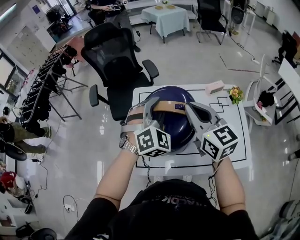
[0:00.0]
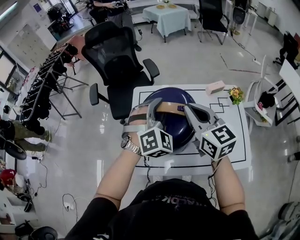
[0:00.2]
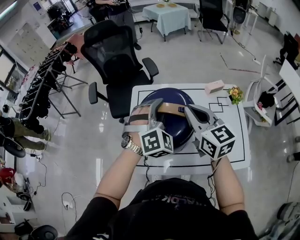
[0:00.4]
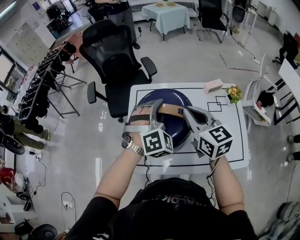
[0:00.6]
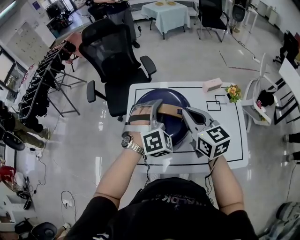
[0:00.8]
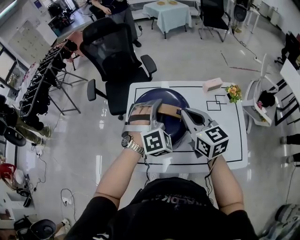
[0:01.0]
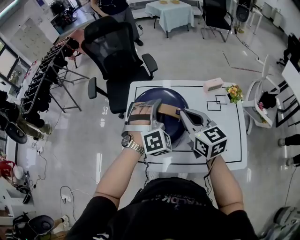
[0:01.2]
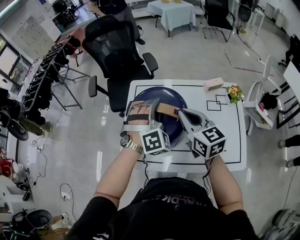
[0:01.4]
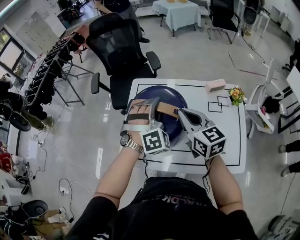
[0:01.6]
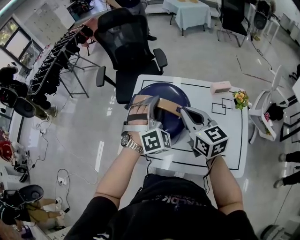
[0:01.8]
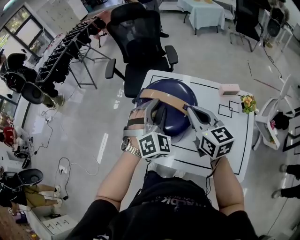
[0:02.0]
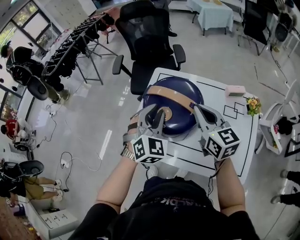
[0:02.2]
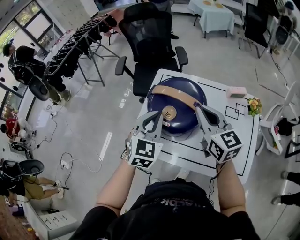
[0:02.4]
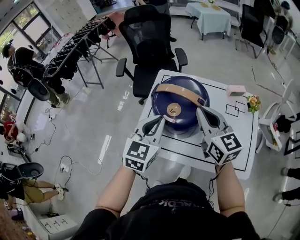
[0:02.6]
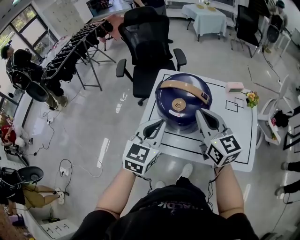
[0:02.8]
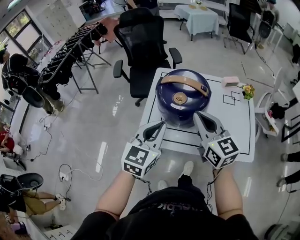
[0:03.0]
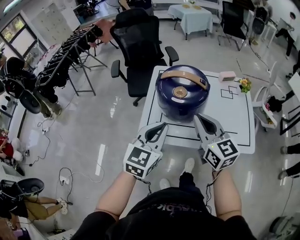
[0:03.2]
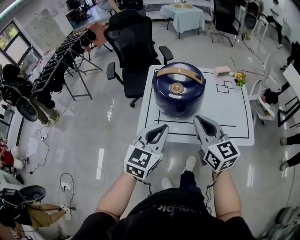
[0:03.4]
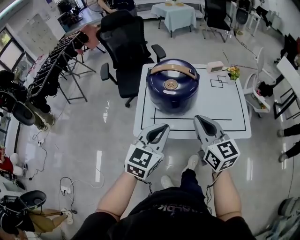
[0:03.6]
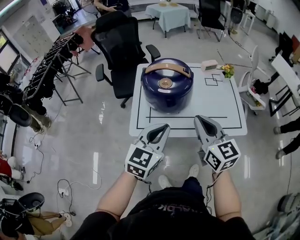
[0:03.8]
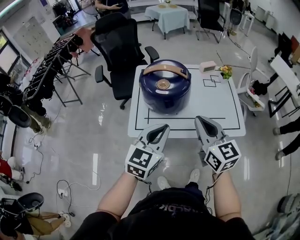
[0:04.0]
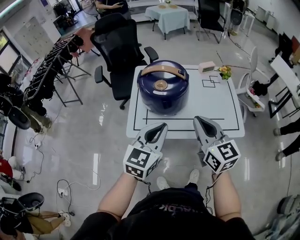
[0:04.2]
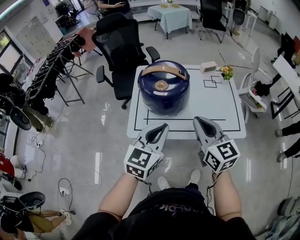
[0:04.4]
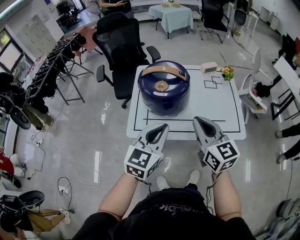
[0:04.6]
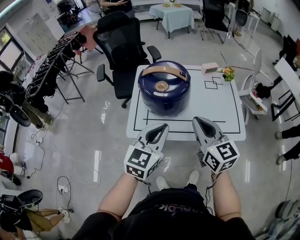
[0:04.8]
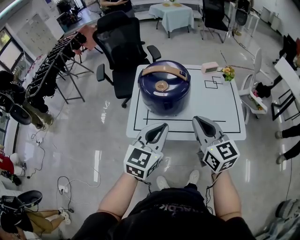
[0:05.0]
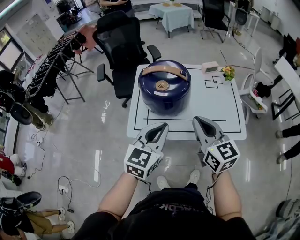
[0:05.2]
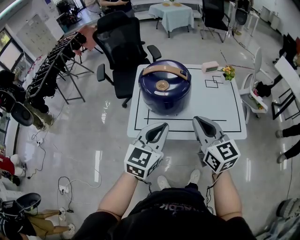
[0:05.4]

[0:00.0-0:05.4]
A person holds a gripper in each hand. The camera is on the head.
0:00.0 to 0:01.4: The grippers both shift downward by some 5 cm.
0:01.4 to 0:02.8: The left gripper shifts about 20 cm backward and to the left, twists about 70 degrees counterclockwise, seen from behind, and closes, while the right gripper moves backward and to the left, roughly 10 cm.
0:02.8 to 0:04.0: The two grippers go approximately 15 cm backward.
0:04.0 to 0:05.4: The grippers move only a little.

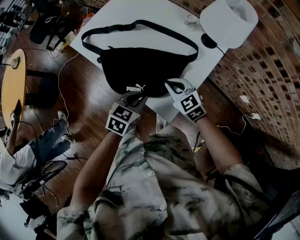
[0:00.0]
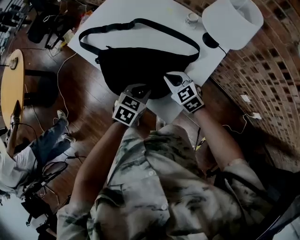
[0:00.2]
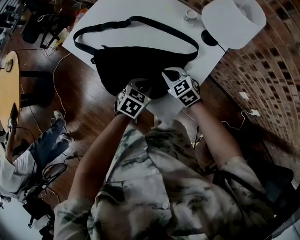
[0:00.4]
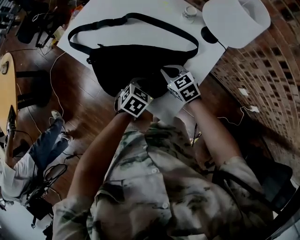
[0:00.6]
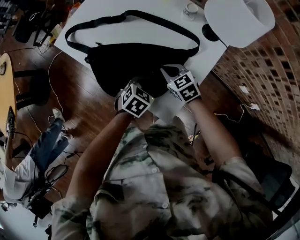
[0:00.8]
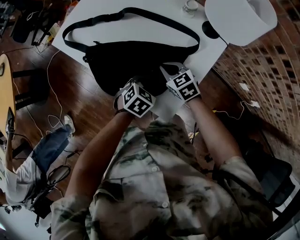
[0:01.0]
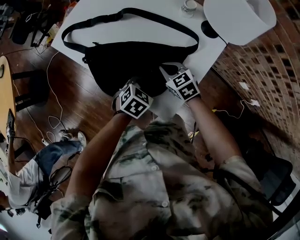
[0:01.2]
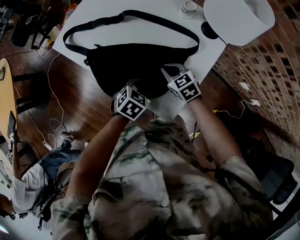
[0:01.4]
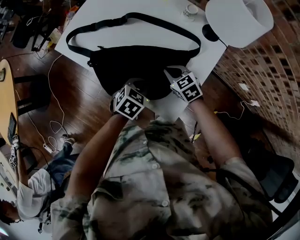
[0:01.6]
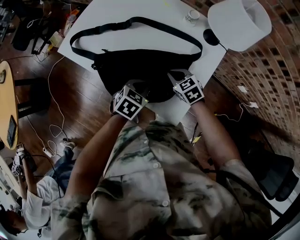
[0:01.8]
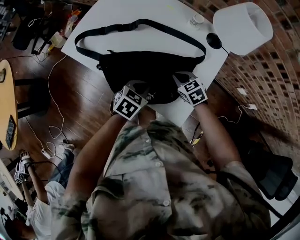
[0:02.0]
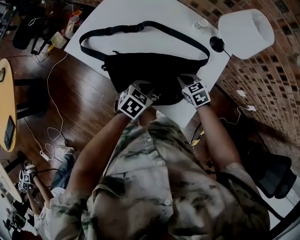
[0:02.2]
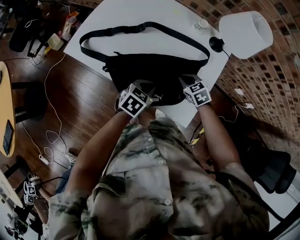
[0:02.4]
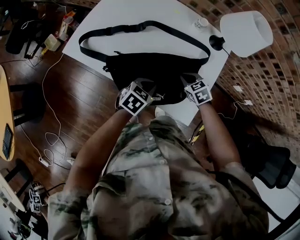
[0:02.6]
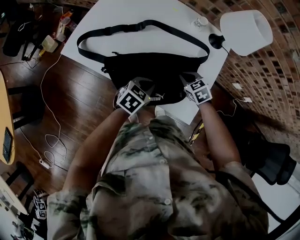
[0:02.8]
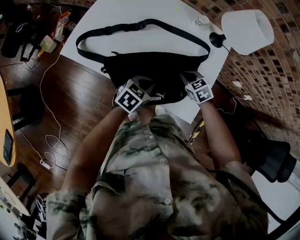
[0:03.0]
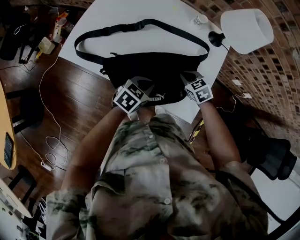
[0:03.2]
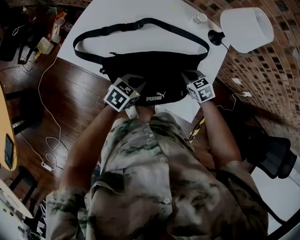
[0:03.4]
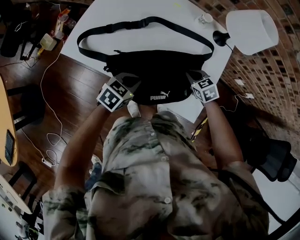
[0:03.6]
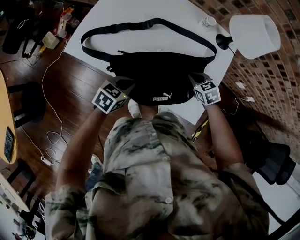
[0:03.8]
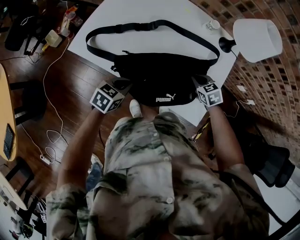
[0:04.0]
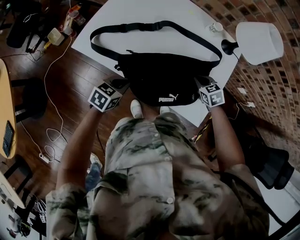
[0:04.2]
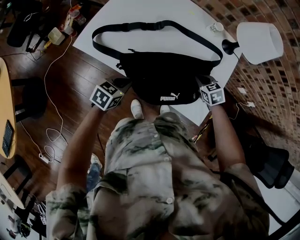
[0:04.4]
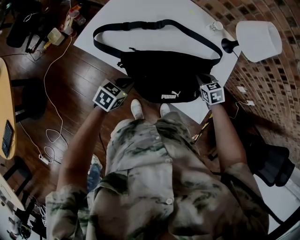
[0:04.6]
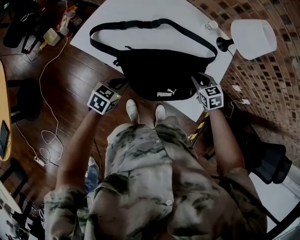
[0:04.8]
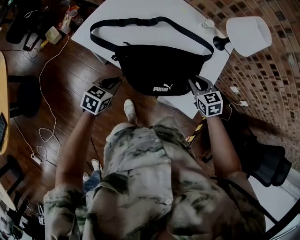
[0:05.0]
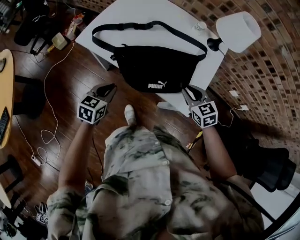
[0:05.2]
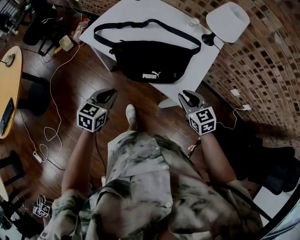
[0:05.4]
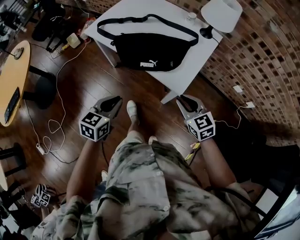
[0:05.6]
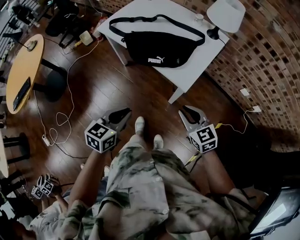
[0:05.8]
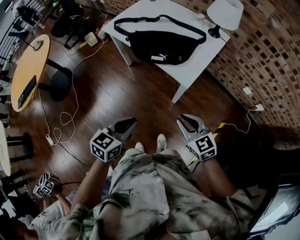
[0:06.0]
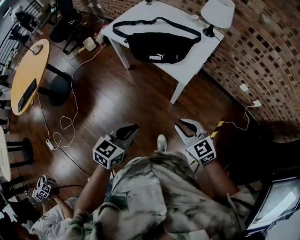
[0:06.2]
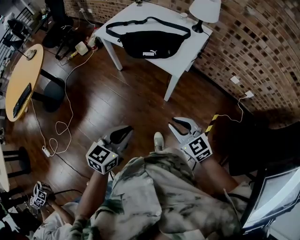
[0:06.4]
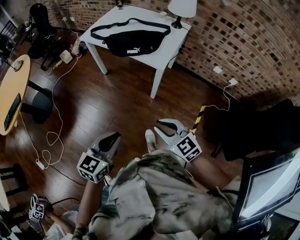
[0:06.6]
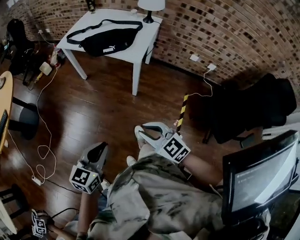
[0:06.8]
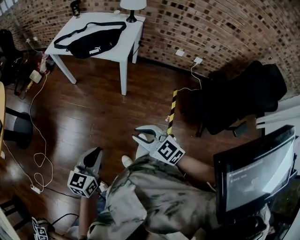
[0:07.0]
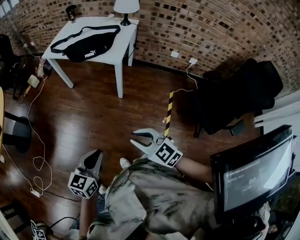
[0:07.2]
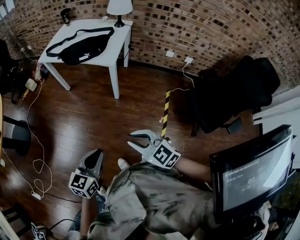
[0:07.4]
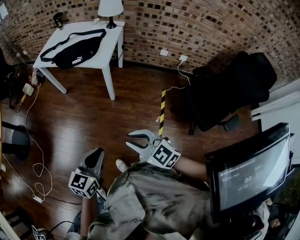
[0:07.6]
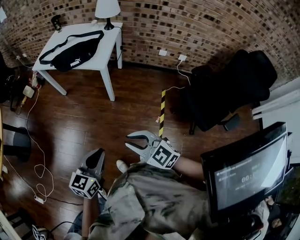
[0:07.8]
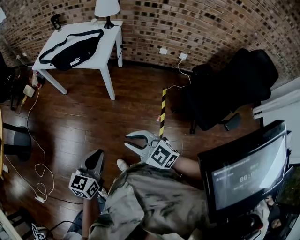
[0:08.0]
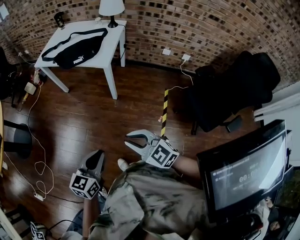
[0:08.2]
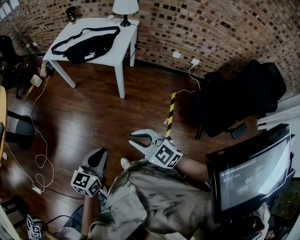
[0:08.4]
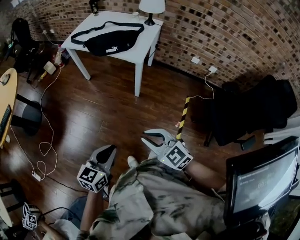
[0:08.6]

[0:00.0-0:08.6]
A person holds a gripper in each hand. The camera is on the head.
0:00.0 to 0:01.4: Both grippers move downward and forward, approximately 10 cm.
0:01.4 to 0:02.8: The left gripper goes some 10 cm to the left.
0:02.8 to 0:04.4: The left gripper is displaced to the left by some 15 cm.
0:04.4 to 0:05.8: The left gripper shifts roughly 40 cm backward, upward and to the right, and turns by some 30 degrees. Meanwhile the right gripper moves backward and upward, some 40 cm, and angles its fingers upward, by some 30 degrees.
0:05.8 to 0:07.2: The two grippers go about 35 cm backward.
0:07.2 to 0:08.6: The left gripper reaches about 10 cm to the right, then returns.

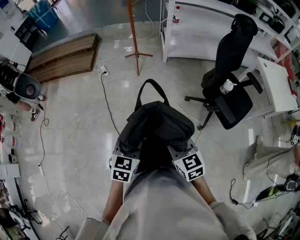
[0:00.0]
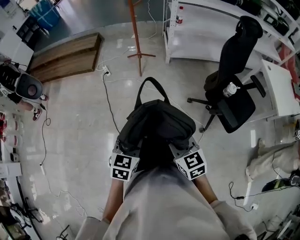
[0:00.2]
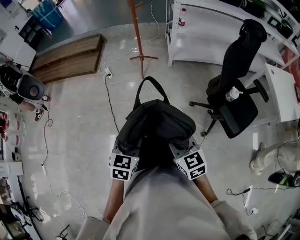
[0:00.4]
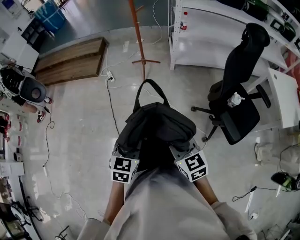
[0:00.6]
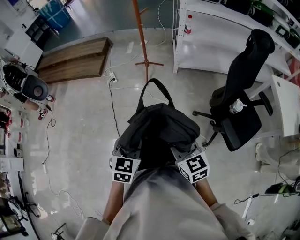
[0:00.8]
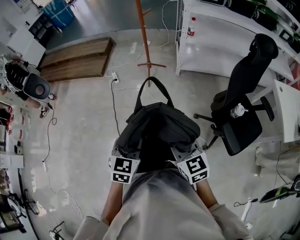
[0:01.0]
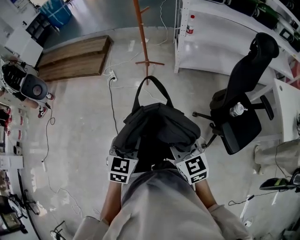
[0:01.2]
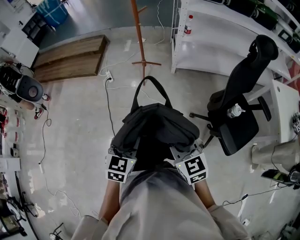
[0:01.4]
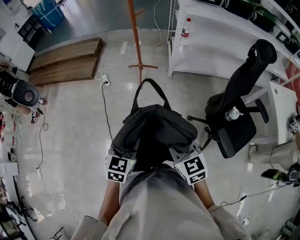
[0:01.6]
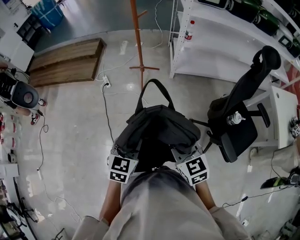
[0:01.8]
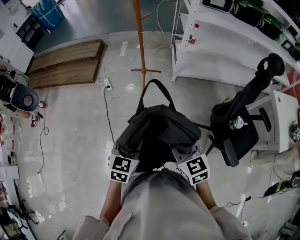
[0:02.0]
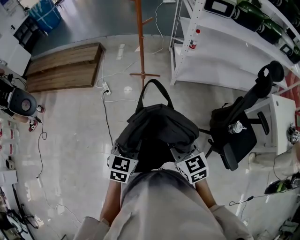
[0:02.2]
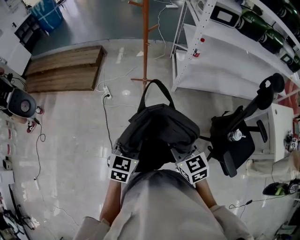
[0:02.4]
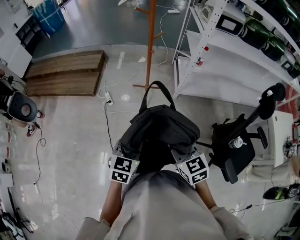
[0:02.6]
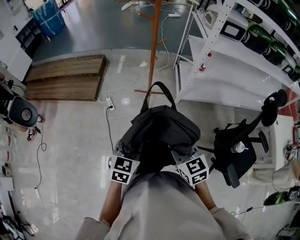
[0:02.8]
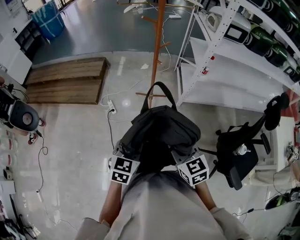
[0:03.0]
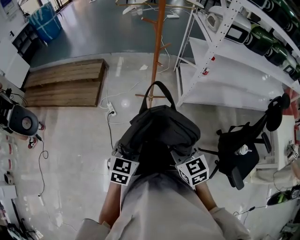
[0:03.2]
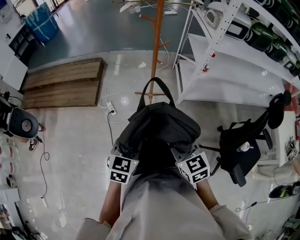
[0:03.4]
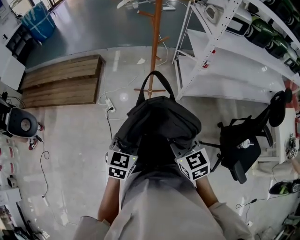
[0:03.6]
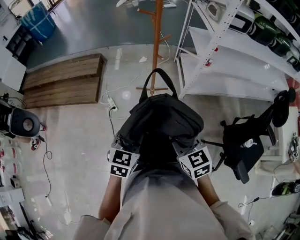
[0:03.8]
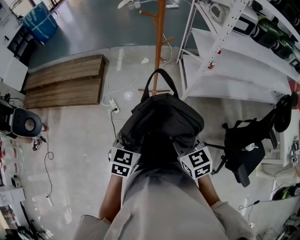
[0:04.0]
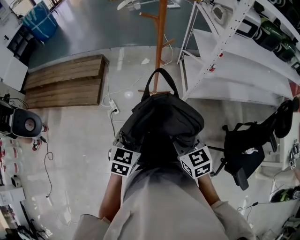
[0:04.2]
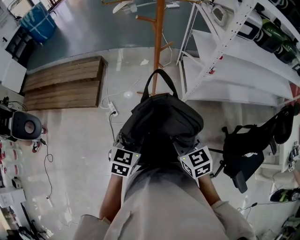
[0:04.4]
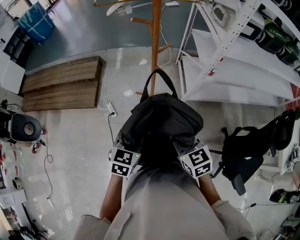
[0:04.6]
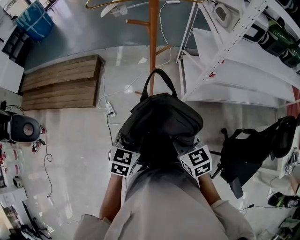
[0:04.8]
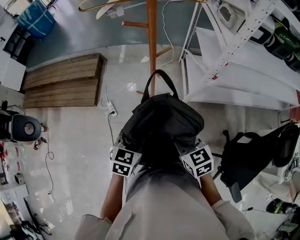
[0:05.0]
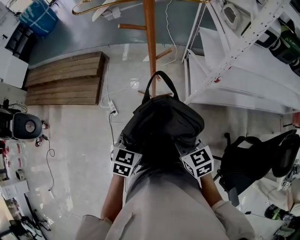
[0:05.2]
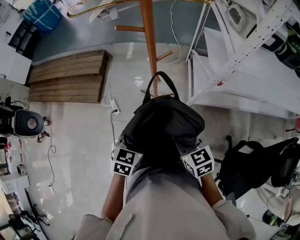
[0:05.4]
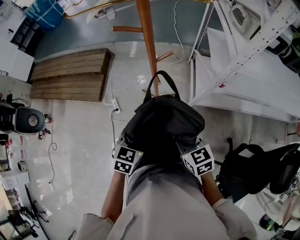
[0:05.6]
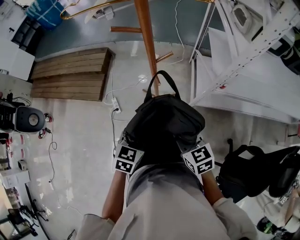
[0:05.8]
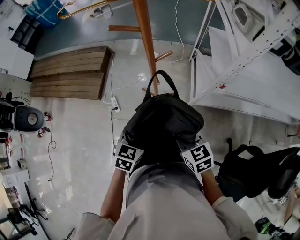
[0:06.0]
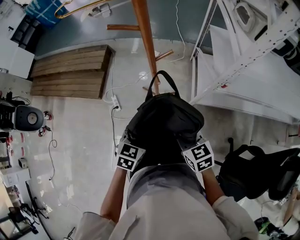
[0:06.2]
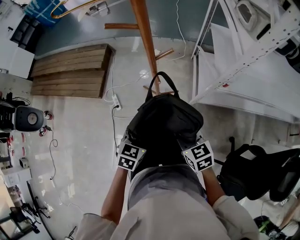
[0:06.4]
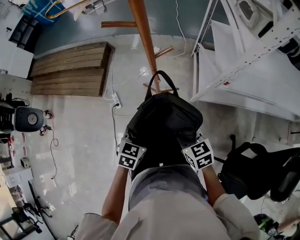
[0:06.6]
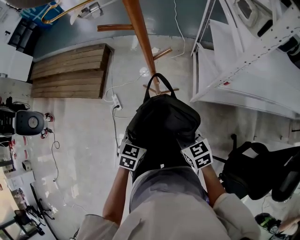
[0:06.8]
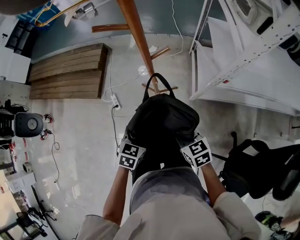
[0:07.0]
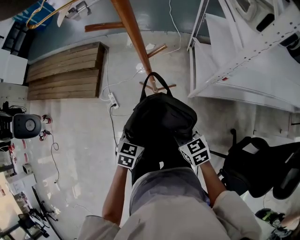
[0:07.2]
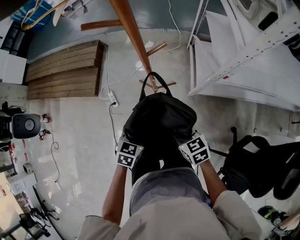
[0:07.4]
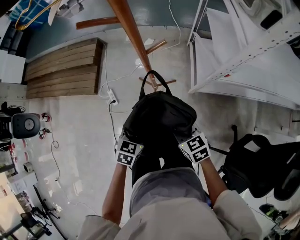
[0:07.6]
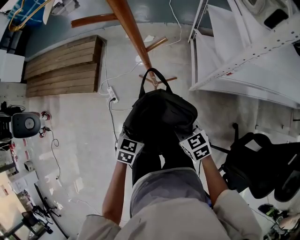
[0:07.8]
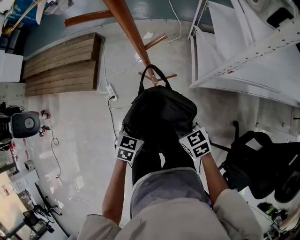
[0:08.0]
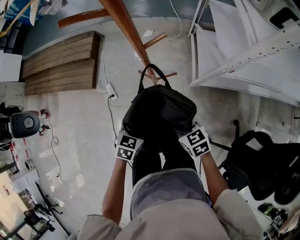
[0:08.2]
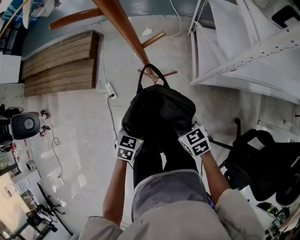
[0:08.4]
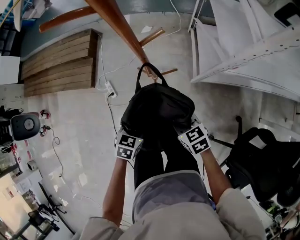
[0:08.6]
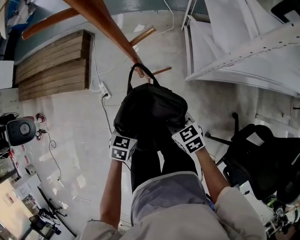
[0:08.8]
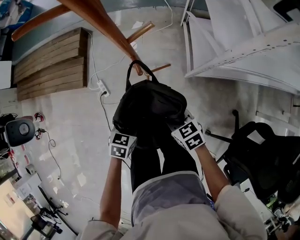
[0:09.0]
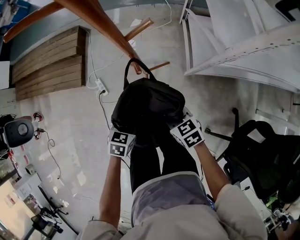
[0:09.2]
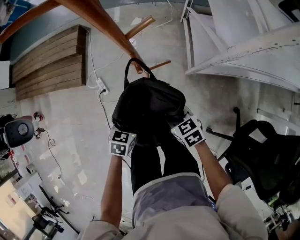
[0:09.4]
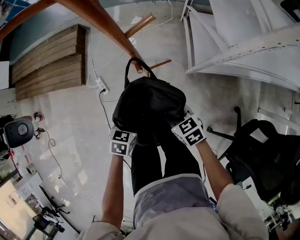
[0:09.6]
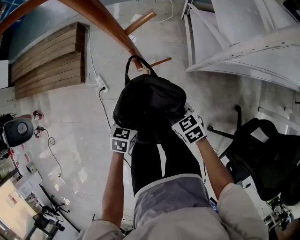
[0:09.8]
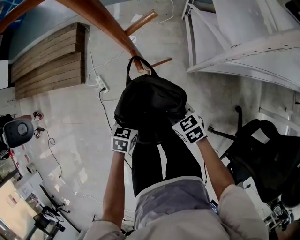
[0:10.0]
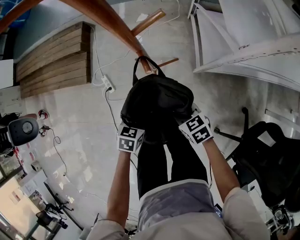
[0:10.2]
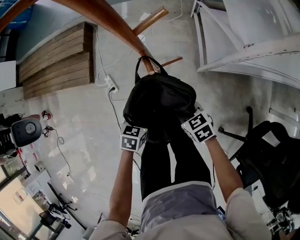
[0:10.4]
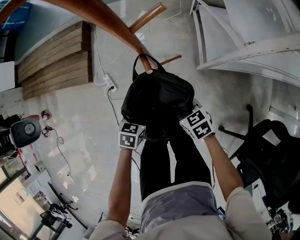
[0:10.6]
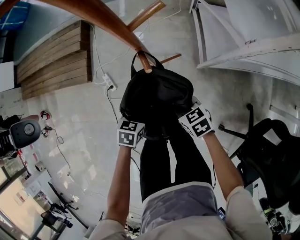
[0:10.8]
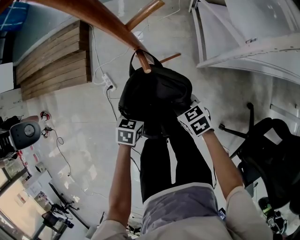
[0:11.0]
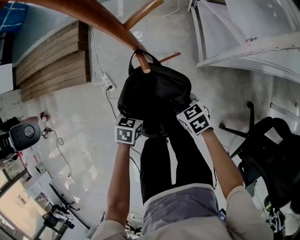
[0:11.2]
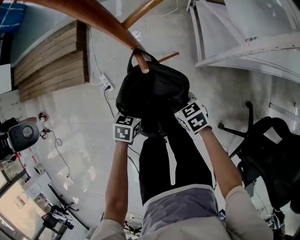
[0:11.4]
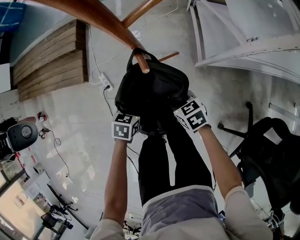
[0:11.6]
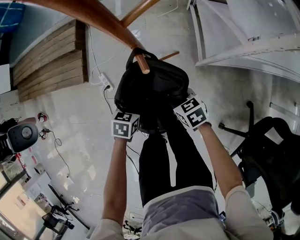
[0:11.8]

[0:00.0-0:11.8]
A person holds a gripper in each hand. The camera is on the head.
0:00.0 to 0:01.4: Both grippers travel together forward, about 20 cm.
0:01.4 to 0:03.0: Both grippers travel together forward and to the left, approximately 35 cm.
0:03.0 to 0:04.4: The grippers both shift forward by roughly 15 cm.
0:04.4 to 0:06.0: The grippers both shift forward, to the right and downward by some 20 cm.
0:06.0 to 0:07.4: Both grippers move downward, about 10 cm.
0:07.4 to 0:08.8: The grippers both shift downward by some 10 cm.
0:08.8 to 0:10.4: Both grippers move downward, some 10 cm.
0:10.4 to 0:11.8: Both grippers travel together downward, approximately 5 cm.
